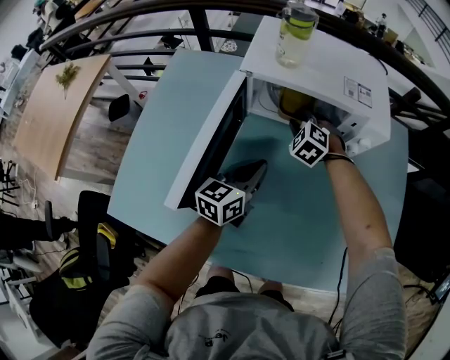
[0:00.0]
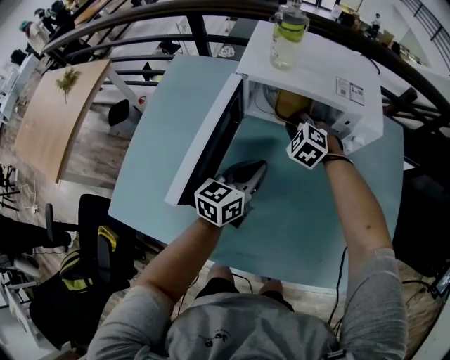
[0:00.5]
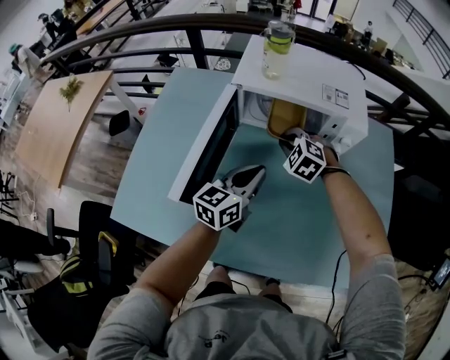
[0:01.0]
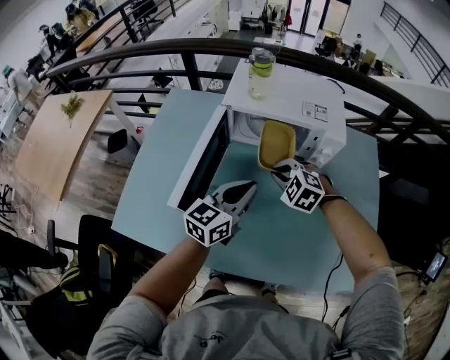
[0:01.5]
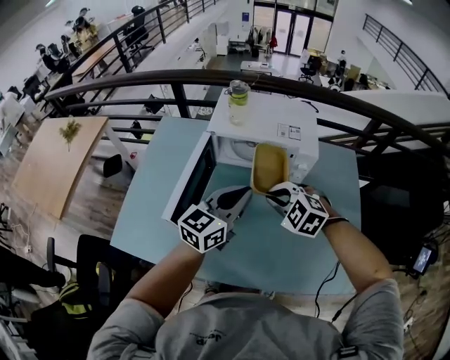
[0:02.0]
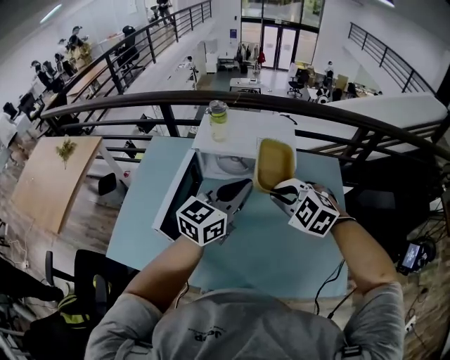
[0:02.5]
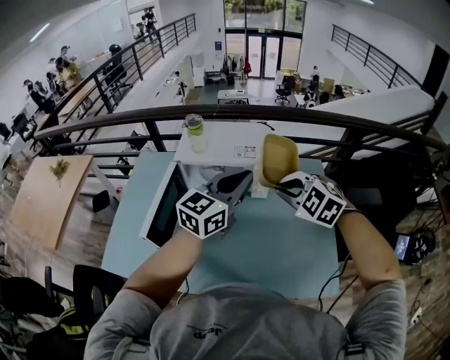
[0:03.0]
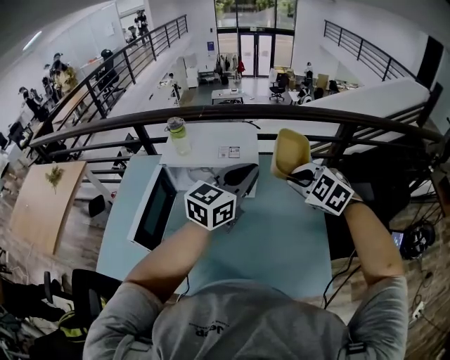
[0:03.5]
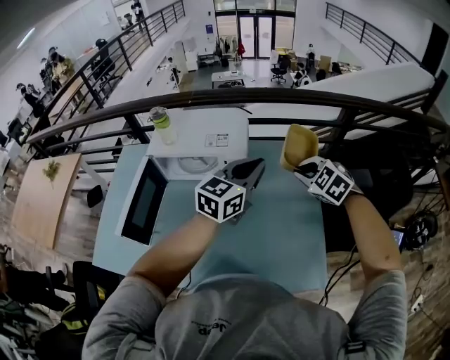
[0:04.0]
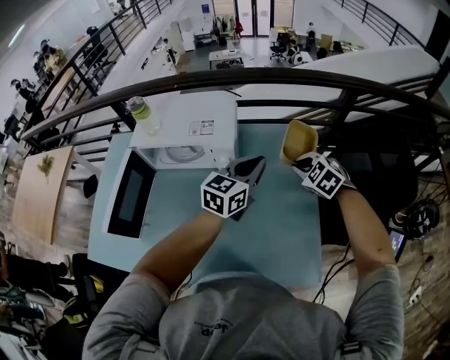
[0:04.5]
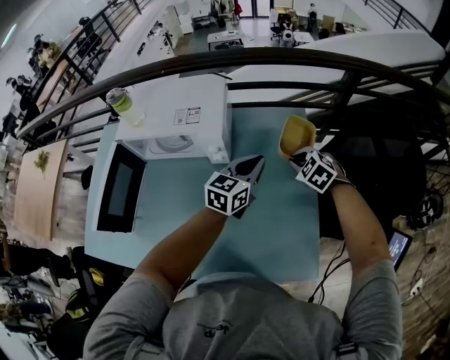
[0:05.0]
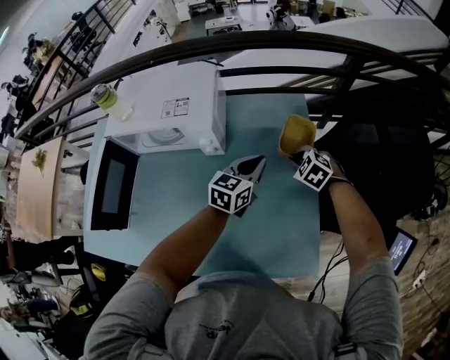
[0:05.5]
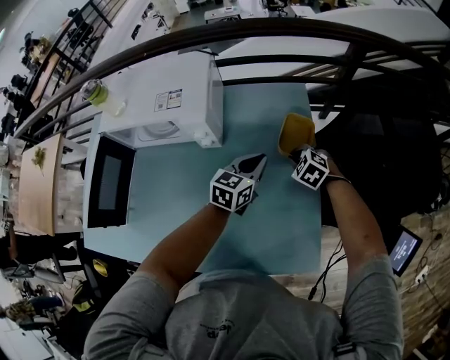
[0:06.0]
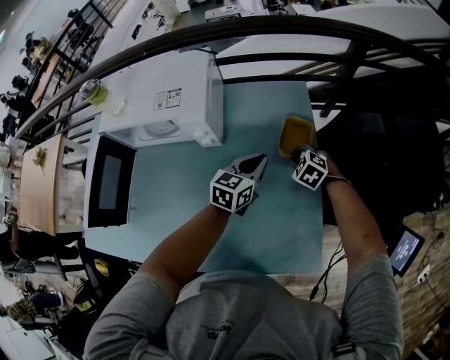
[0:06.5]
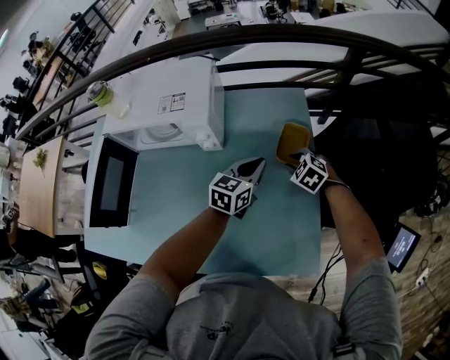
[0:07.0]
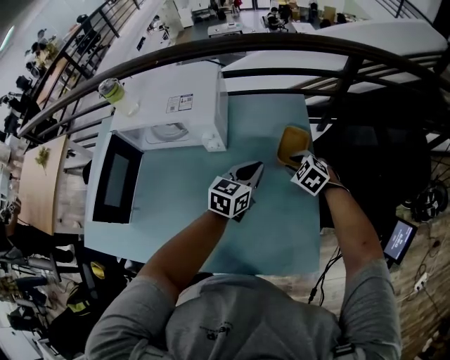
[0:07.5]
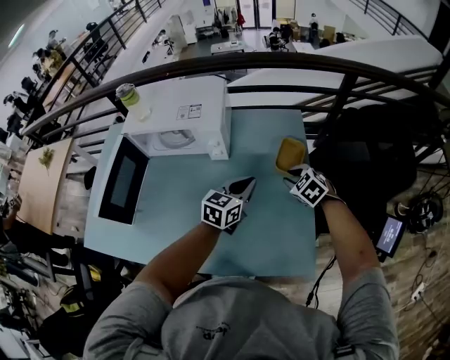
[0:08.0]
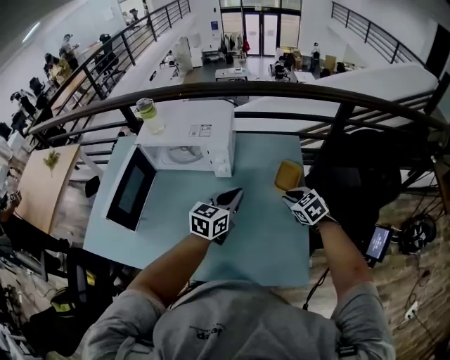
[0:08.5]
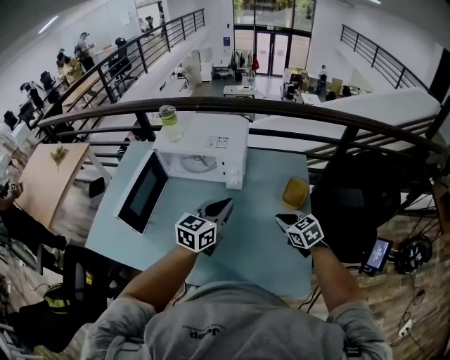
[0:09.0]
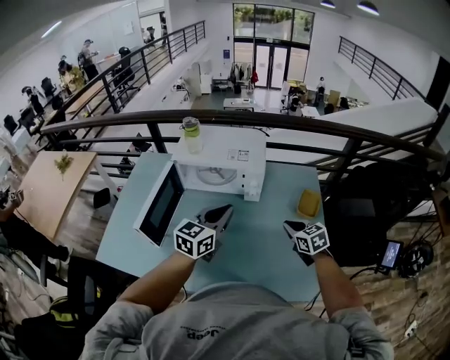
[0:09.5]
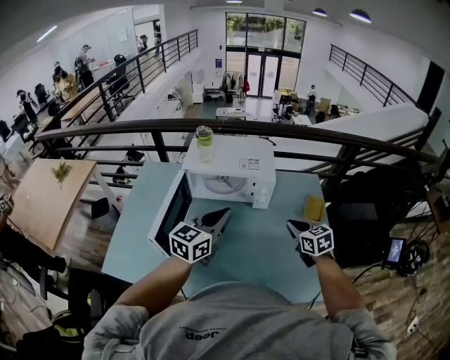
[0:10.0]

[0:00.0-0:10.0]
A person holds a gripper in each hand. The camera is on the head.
0.0 to 2.0 s: The right gripper travels backward and upward by roughly 30 cm. The left gripper travels upward by about 20 cm.
2.0 to 4.0 s: The grippers both shift to the right by about 30 cm.
4.0 to 6.0 s: Both grippers travel together downward, approximately 30 cm. The left gripper turns by approximately 20 degrees.
6.0 to 8.0 s: The left gripper moves backward and upward, roughly 10 cm; the right gripper shifts roughly 10 cm upward and backward.
8.0 to 10.0 s: Both grippers travel together to the left and upward, approximately 30 cm. The right gripper rotates some 30 degrees, and closes up.

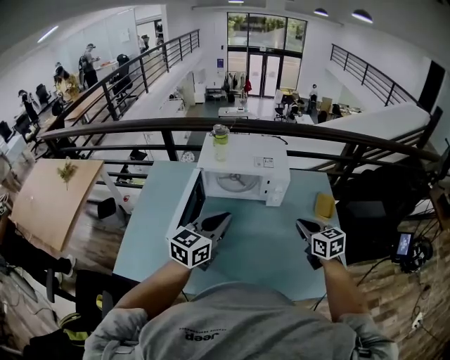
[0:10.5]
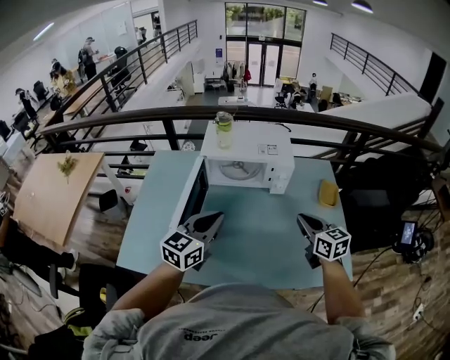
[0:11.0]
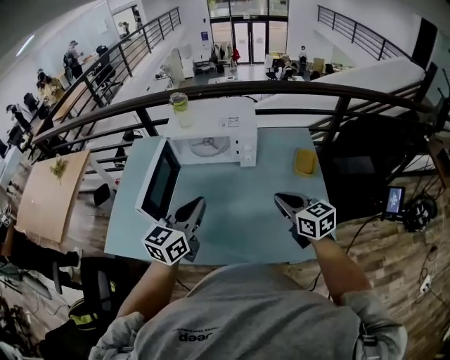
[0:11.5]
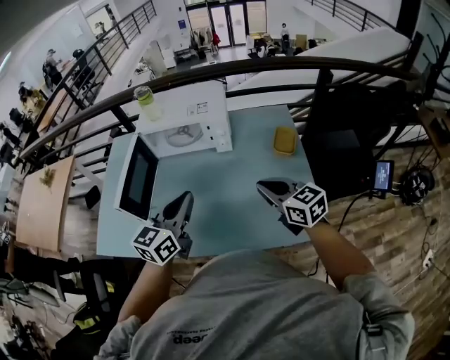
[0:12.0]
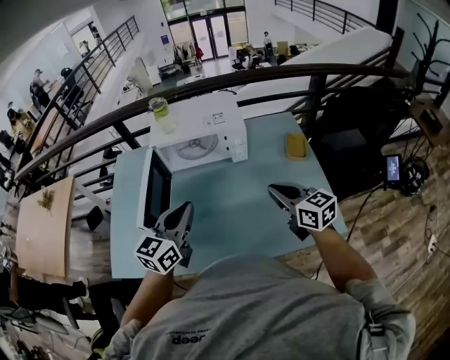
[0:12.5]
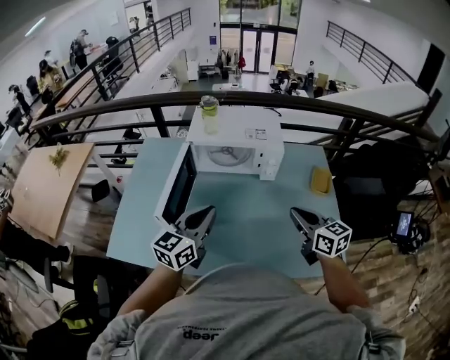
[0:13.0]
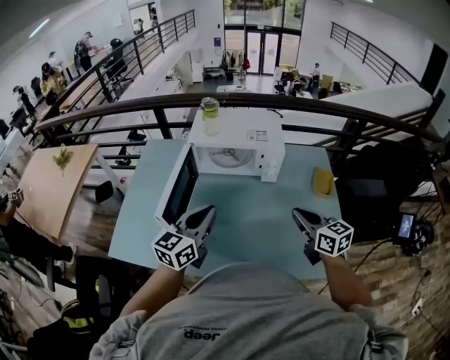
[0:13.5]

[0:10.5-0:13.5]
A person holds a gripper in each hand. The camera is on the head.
10.5 to 12.0 s: The right gripper shifts approximately 10 cm backward and to the right; the left gripper heads to the right and backward, covering about 15 cm.
12.0 to 13.5 s: The left gripper is displaced to the left by roughly 15 cm; the right gripper is displaced to the left by roughly 10 cm.

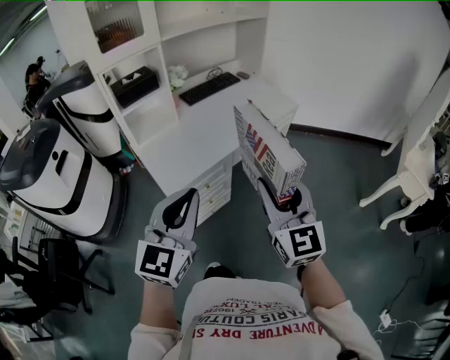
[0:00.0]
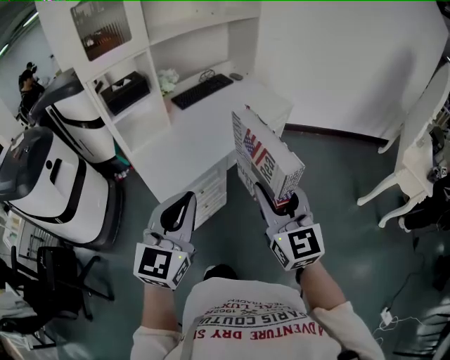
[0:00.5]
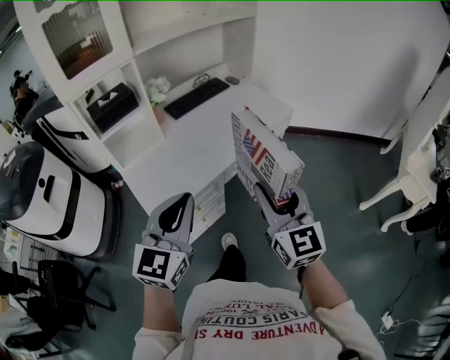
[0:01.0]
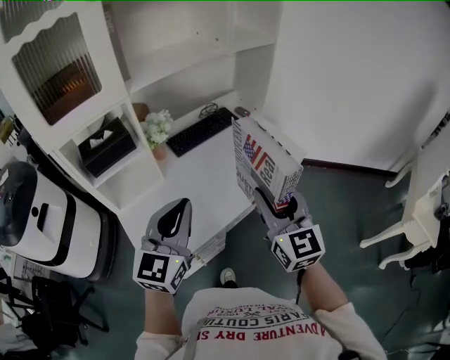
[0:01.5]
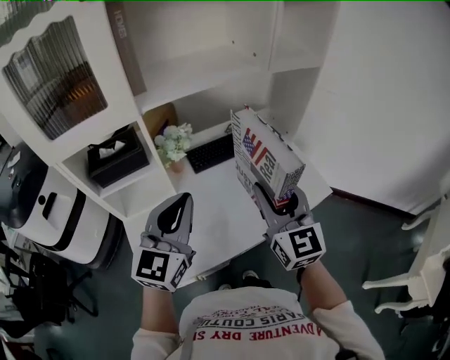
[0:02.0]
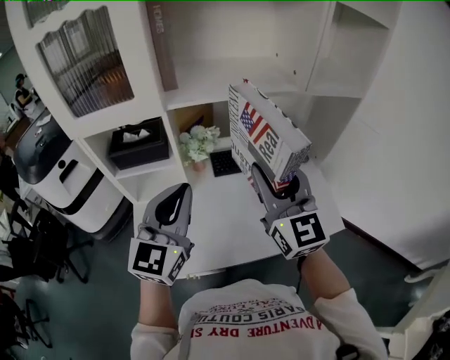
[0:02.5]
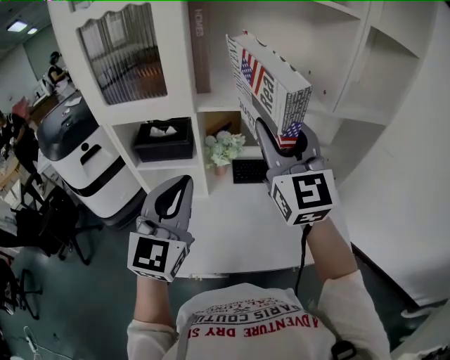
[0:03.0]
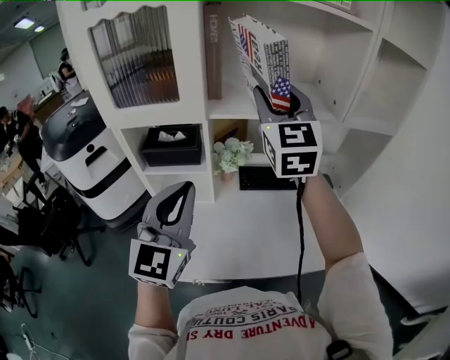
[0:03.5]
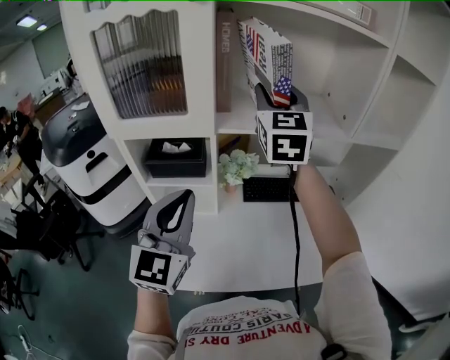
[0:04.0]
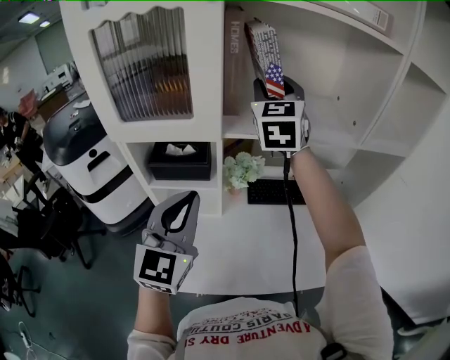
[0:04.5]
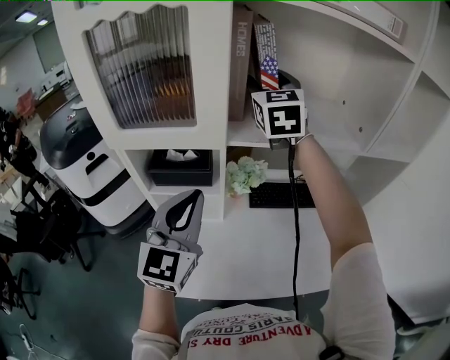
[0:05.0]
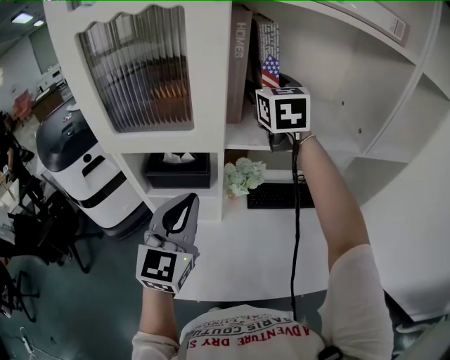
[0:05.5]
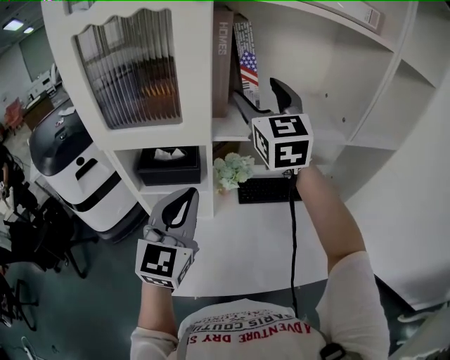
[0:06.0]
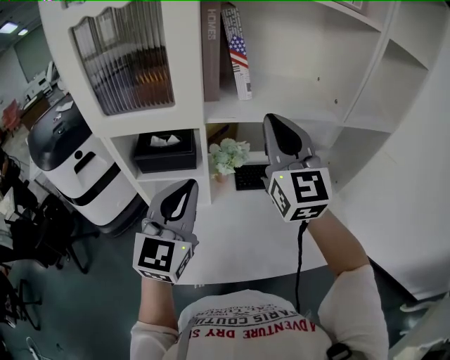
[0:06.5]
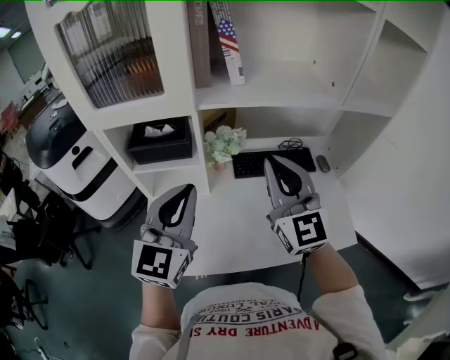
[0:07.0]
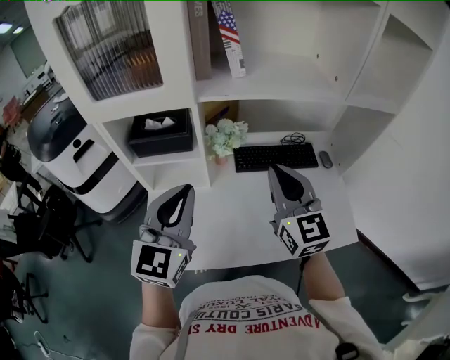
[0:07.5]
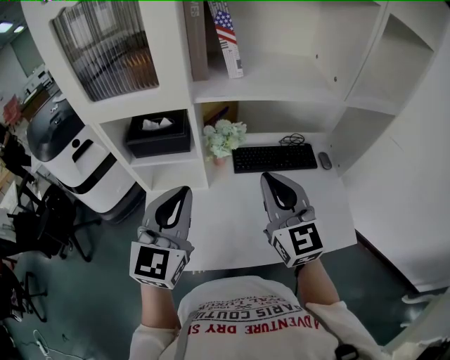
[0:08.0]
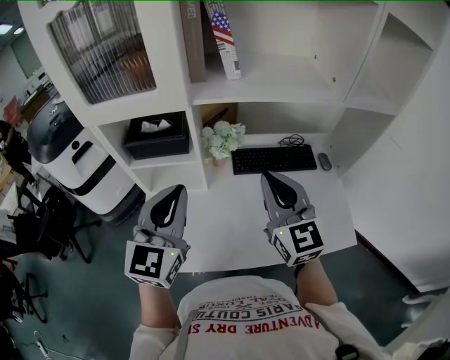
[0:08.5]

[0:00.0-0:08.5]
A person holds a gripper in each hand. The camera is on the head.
0.0 to 2.0 s: The two grippers travel together, forward, about 50 cm.
2.0 to 4.0 s: The right gripper travels forward, upward and to the left by approximately 40 cm, while the left gripper moves to the left and upward, some 10 cm, and rotates roughly 30 degrees.
4.0 to 6.5 s: The right gripper shifts about 10 cm backward and downward, and closes its fingers.
6.5 to 8.5 s: The right gripper heads downward and backward, covering roughly 15 cm.

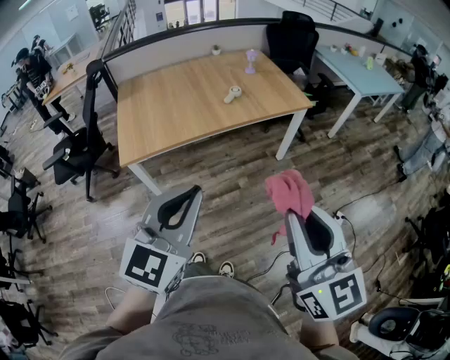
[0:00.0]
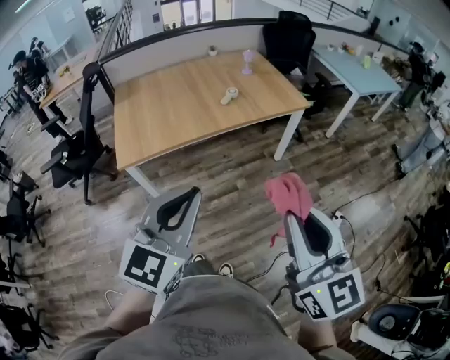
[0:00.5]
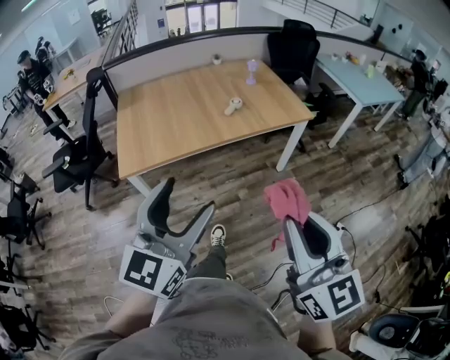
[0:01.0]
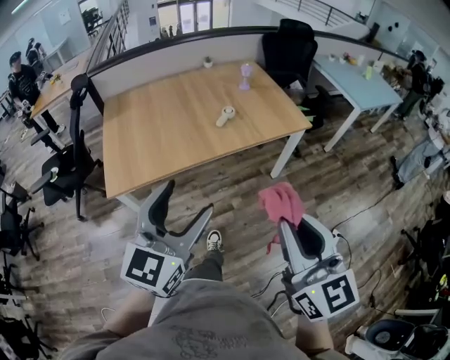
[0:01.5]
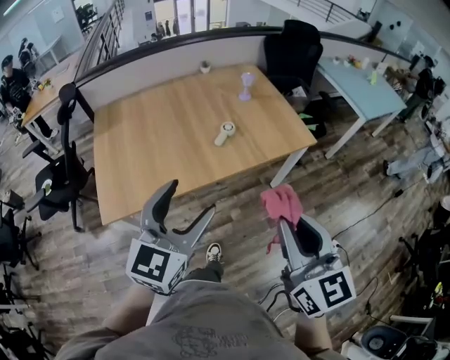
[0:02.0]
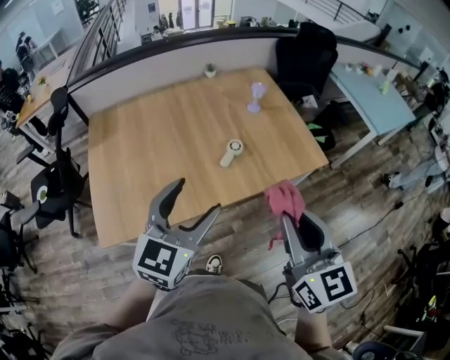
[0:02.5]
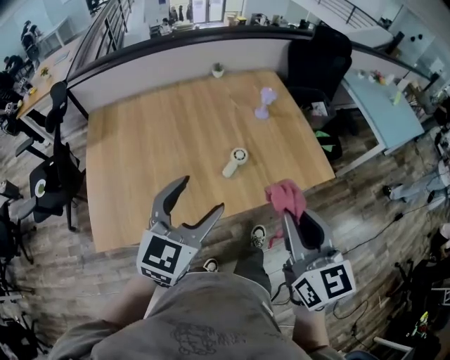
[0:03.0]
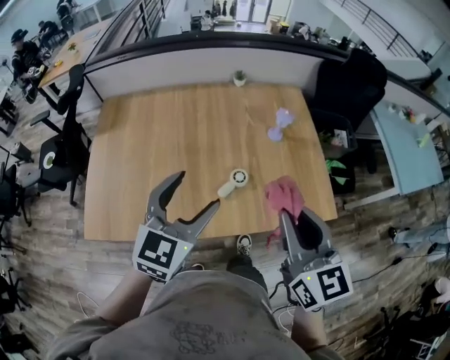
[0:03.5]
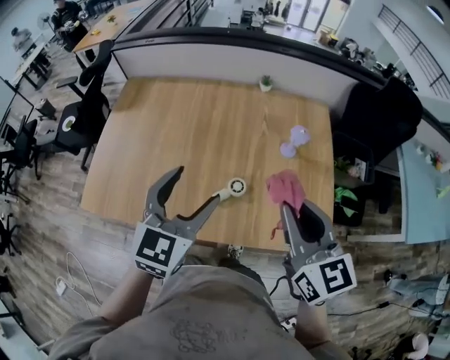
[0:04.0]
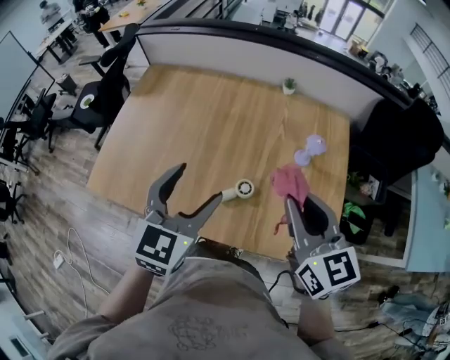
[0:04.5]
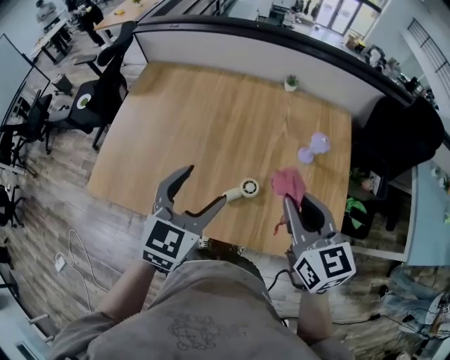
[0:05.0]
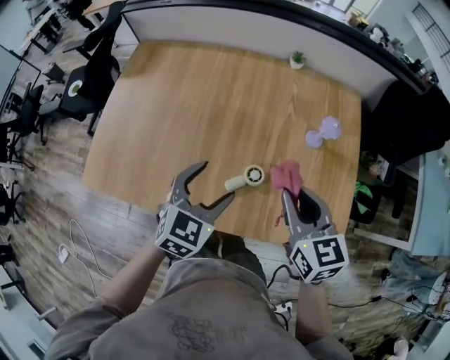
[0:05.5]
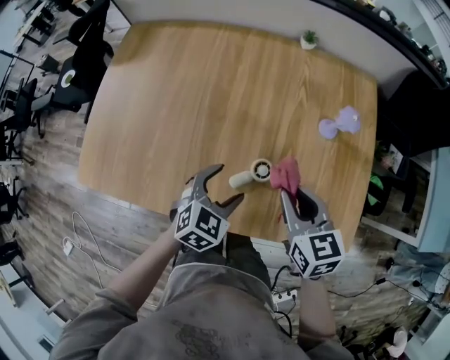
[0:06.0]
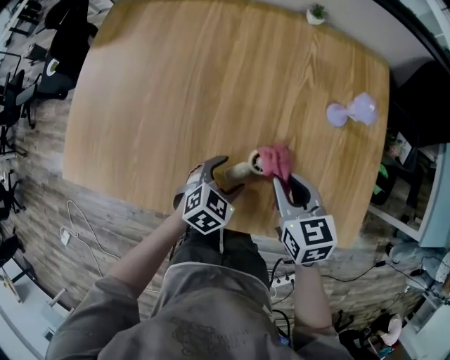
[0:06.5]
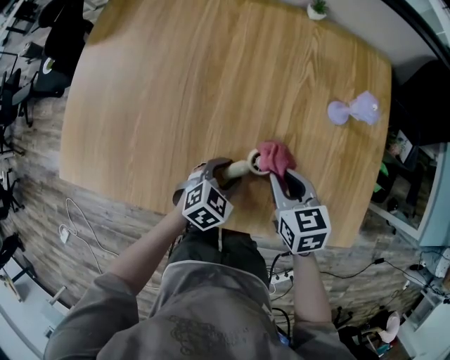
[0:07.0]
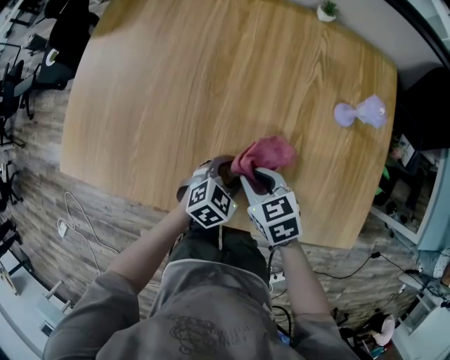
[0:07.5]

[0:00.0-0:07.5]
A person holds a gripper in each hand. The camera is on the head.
0.0 to 2.0 s: Both grippers travel together forward, approximately 30 cm. The left gripper opens.
2.0 to 4.0 s: The right gripper moves some 50 cm, and rotates about 30 degrees, while the left gripper ends up about 40 cm from where it was, and turns by approximately 30 degrees.
4.0 to 5.5 s: The left gripper goes approximately 15 cm downward, while the right gripper travels downward and forward by approximately 15 cm.
5.5 to 7.5 s: The right gripper travels downward and to the left by some 25 cm, and changes its angle by about 30 degrees, while the left gripper heads downward, covering approximately 25 cm, changes its angle by some 20 degrees, and closes.
